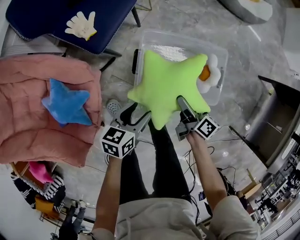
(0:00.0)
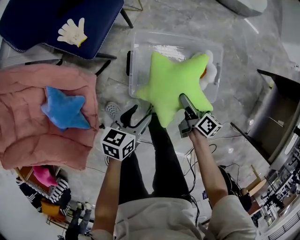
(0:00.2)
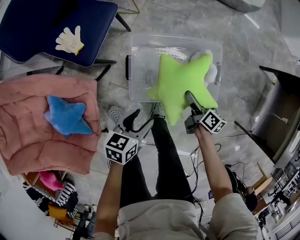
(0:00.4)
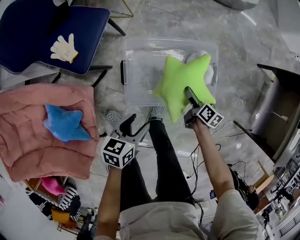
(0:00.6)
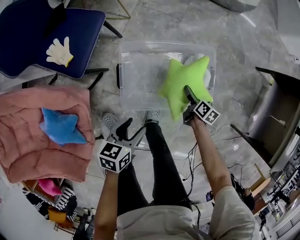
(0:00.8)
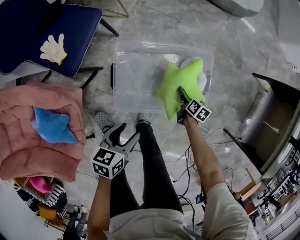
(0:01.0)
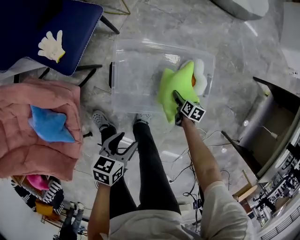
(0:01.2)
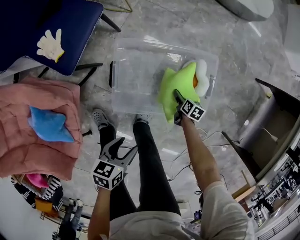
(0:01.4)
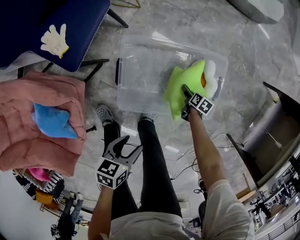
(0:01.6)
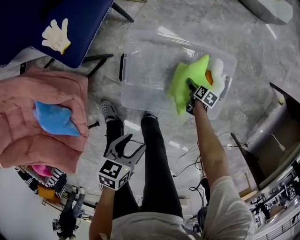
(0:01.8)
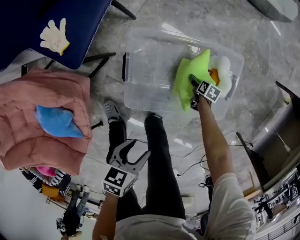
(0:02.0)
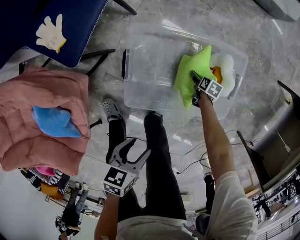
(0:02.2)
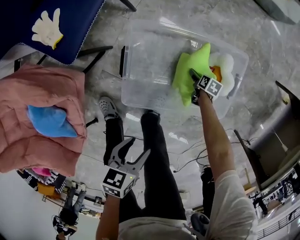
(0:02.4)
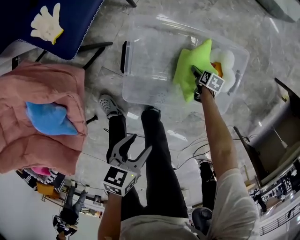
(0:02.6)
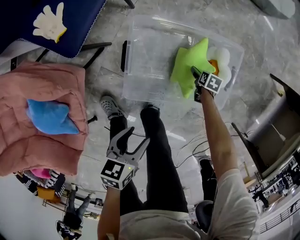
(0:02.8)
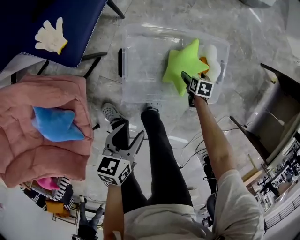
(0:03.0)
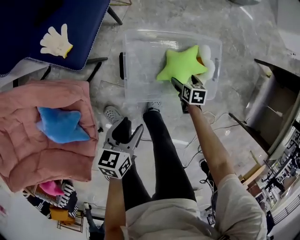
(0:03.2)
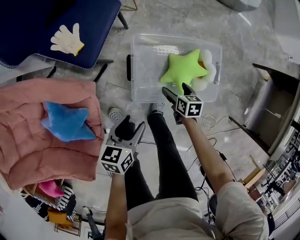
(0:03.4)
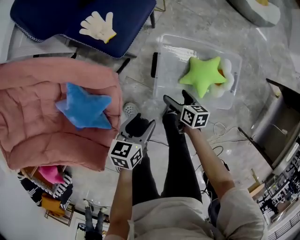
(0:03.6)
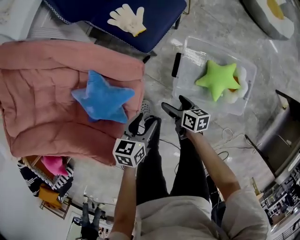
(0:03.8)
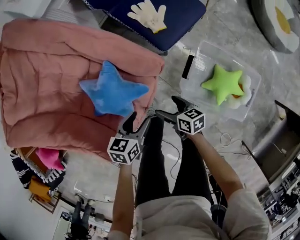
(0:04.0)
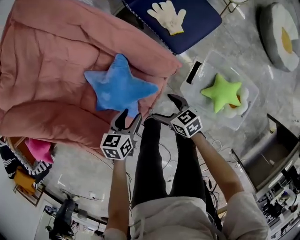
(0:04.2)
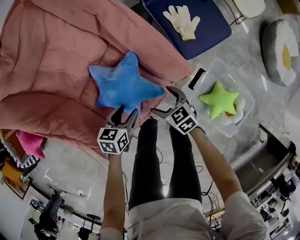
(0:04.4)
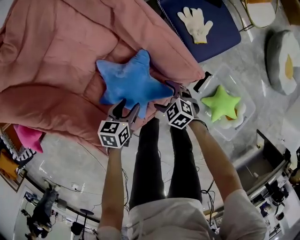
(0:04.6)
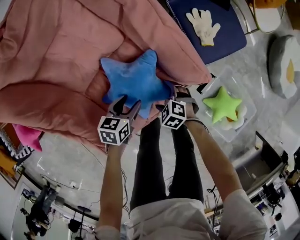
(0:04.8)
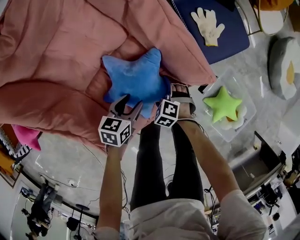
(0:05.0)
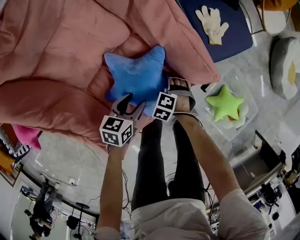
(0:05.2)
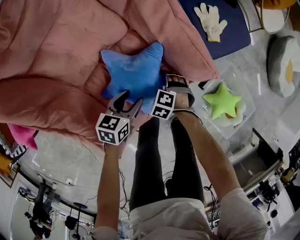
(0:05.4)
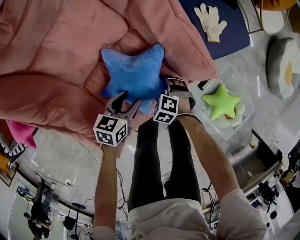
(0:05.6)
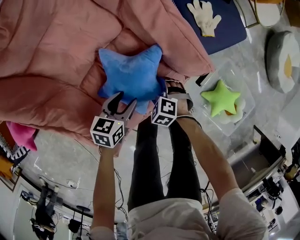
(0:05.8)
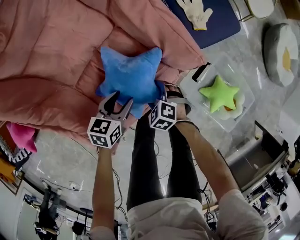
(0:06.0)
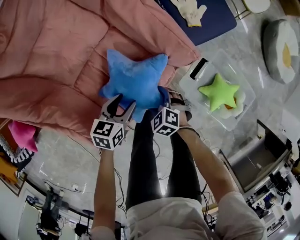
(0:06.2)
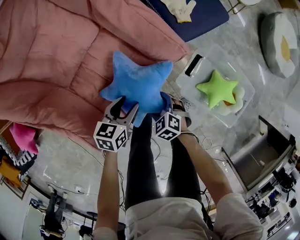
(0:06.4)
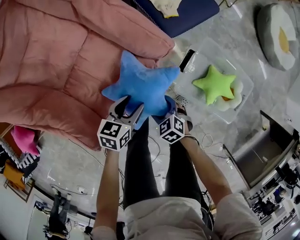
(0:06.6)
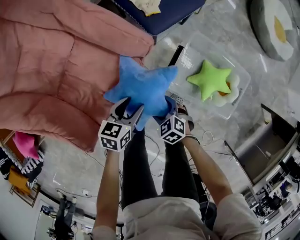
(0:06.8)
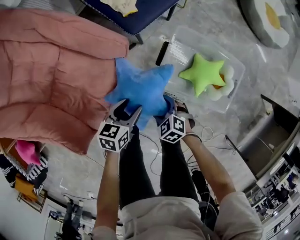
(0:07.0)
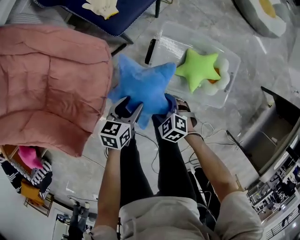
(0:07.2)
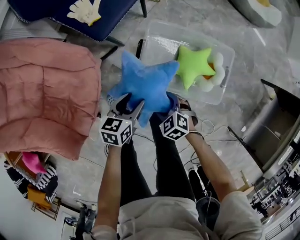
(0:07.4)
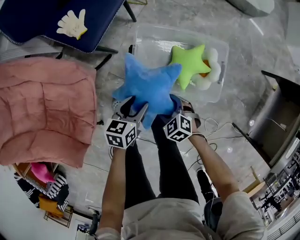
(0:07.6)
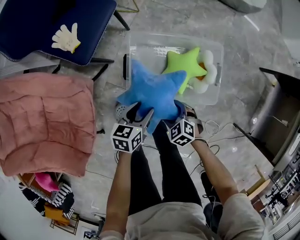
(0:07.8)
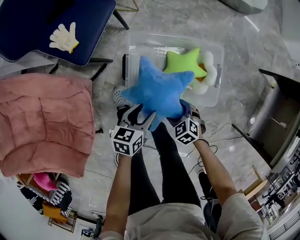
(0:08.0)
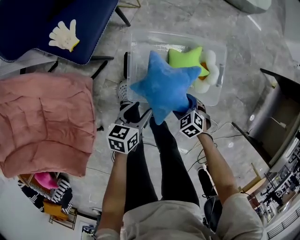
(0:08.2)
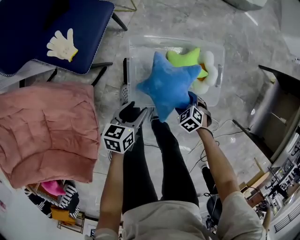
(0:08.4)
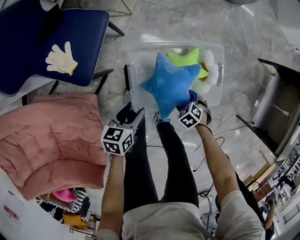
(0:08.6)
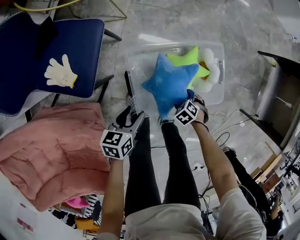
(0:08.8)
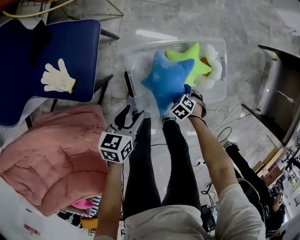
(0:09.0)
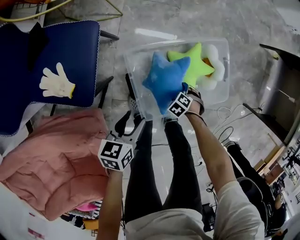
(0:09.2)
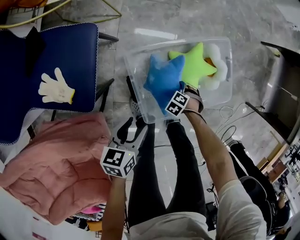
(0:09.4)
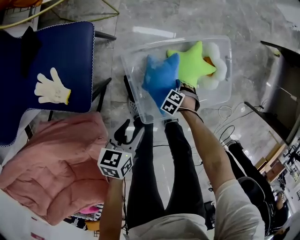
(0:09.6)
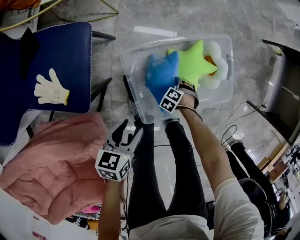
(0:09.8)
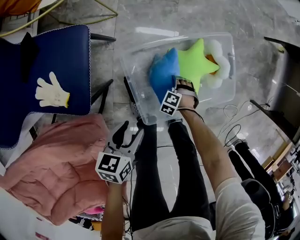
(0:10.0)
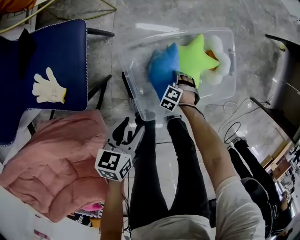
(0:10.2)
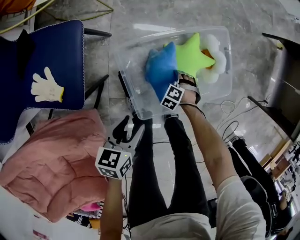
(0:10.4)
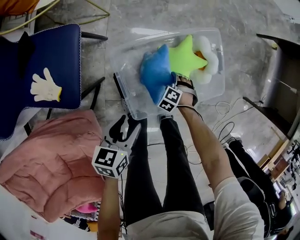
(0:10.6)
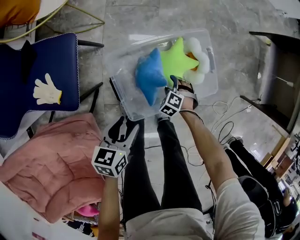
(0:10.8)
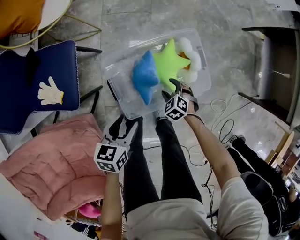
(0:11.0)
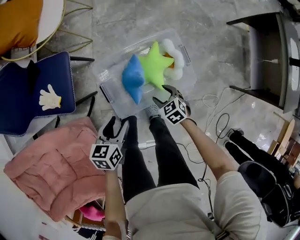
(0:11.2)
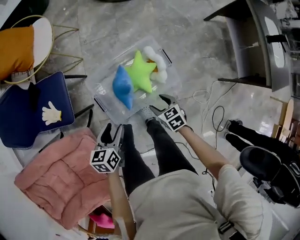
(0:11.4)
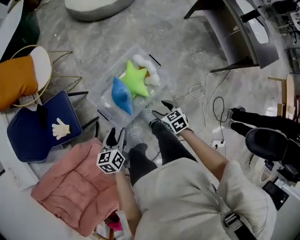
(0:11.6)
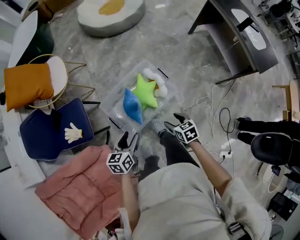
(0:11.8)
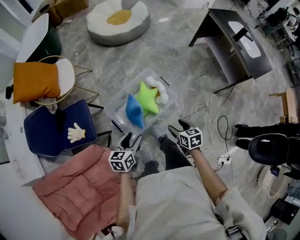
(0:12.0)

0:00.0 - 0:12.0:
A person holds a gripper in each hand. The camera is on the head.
0:00.0 - 0:01.6: The left gripper moves to the right, roughly 10 cm, while the right gripper goes approximately 35 cm downward, to the right and forward, and angles its fingers downward, by roughly 50 degrees.
0:01.6 - 0:03.0: The right gripper moves roughly 10 cm downward and comes back, and rotates roughly 20 degrees; the left gripper moves some 10 cm.
0:03.0 - 0:04.4: Both grippers are carried some 50 cm. The left gripper swivels some 30 degrees. Meanwhile the right gripper rolls counterclockwise, seen from behind, by roughly 70 degrees.
0:04.4 - 0:06.0: The right gripper shifts by about 10 cm, and rotates approximately 40 degrees.
0:06.0 - 0:07.6: The pair of grippers is taken roughly 50 cm. The right gripper rotates about 40 degrees. Meanwhile the left gripper swivels about 30 degrees.
0:07.6 - 0:09.0: The right gripper goes roughly 15 cm downward, and turns by some 40 degrees; the left gripper shifts by roughly 15 cm.
0:09.0 - 0:10.4: The right gripper travels downward by approximately 10 cm.
0:10.4 - 0:12.0: The left gripper heads upward, covering approximately 30 cm, and changes its angle by about 20 degrees. The right gripper travels upward by some 50 cm, and rolls clockwise, seen from behind, by roughly 80 degrees.

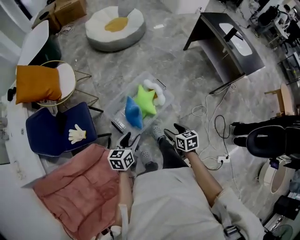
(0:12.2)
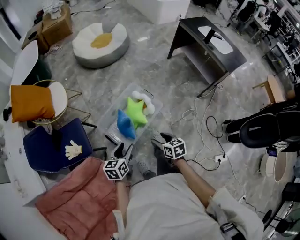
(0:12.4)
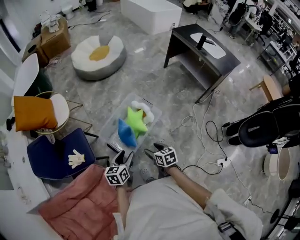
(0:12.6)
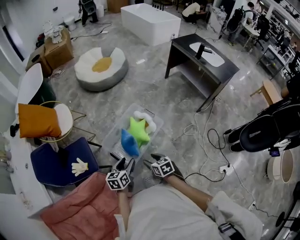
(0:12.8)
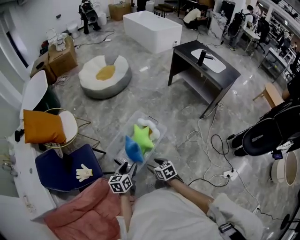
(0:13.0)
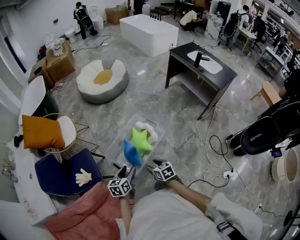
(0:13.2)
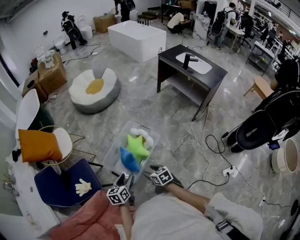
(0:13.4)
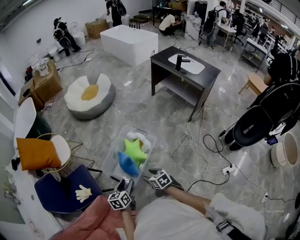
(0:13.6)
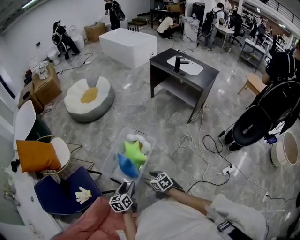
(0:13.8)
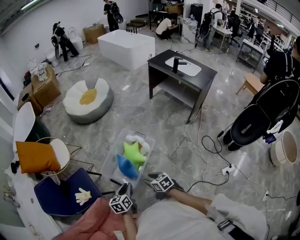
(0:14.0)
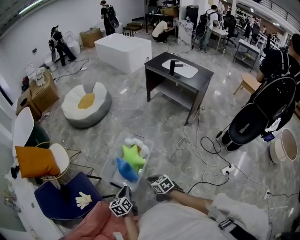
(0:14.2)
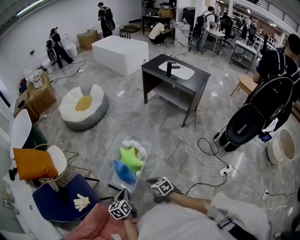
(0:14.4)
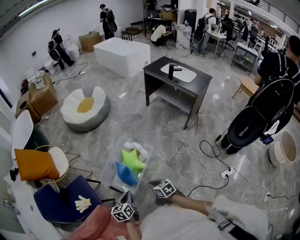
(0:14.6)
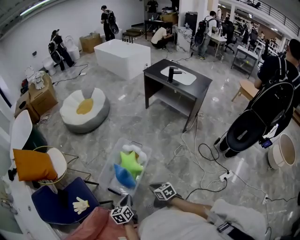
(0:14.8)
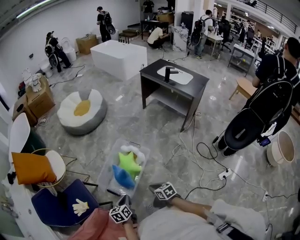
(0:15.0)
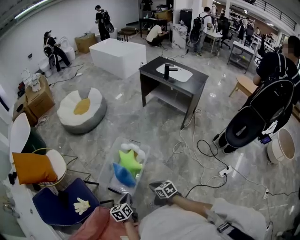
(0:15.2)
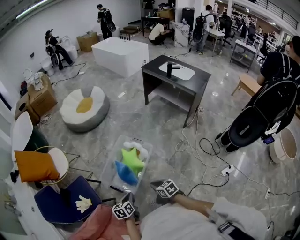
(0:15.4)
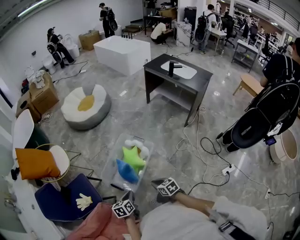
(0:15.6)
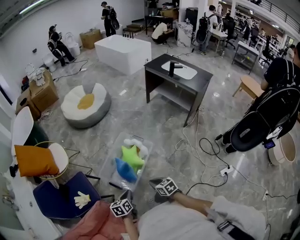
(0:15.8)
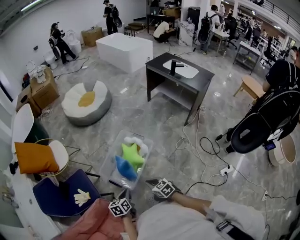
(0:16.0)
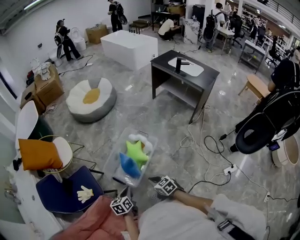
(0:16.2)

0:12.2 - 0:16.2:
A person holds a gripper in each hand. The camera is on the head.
0:12.2 - 0:13.6: The left gripper moves backward, roughly 5 cm. The right gripper shifts about 10 cm to the left and backward.
0:13.6 - 0:14.8: The right gripper moves some 5 cm, and closes its fingers, while the left gripper closes up.
0:14.8 - 0:16.2: The grippers make only small movements.

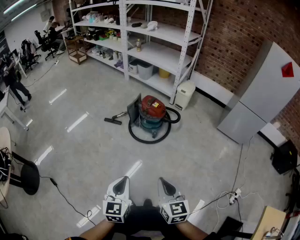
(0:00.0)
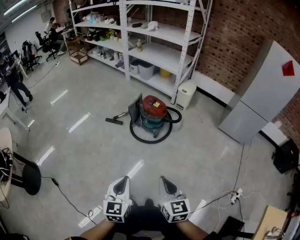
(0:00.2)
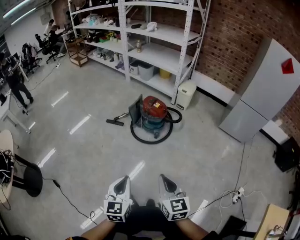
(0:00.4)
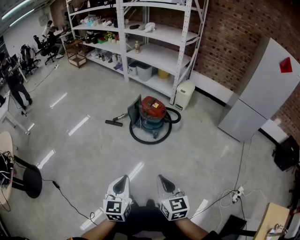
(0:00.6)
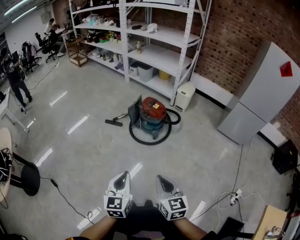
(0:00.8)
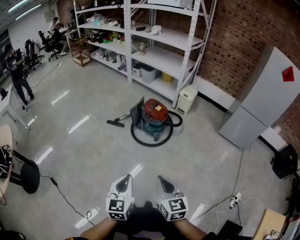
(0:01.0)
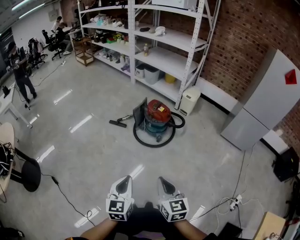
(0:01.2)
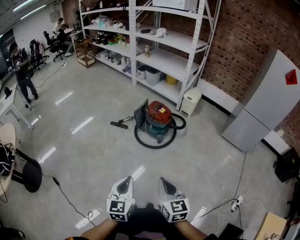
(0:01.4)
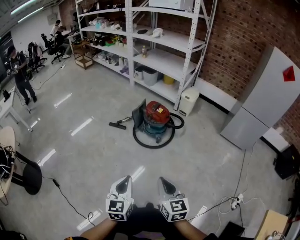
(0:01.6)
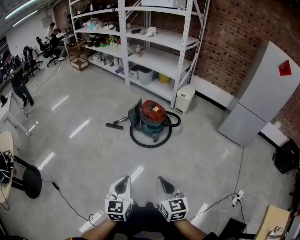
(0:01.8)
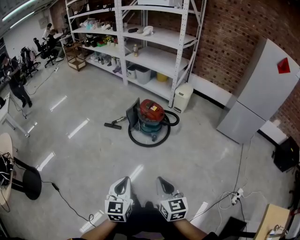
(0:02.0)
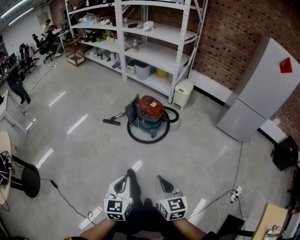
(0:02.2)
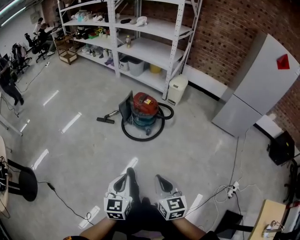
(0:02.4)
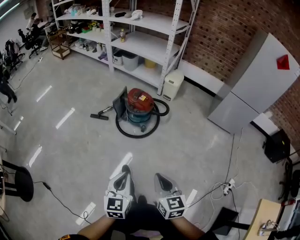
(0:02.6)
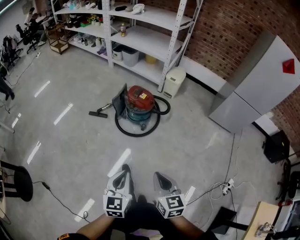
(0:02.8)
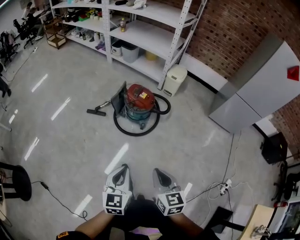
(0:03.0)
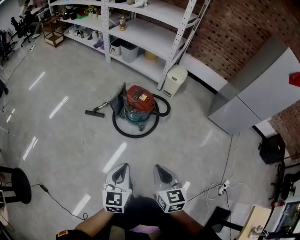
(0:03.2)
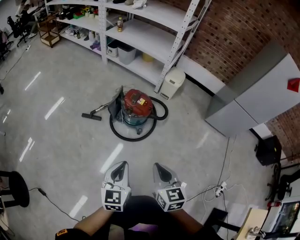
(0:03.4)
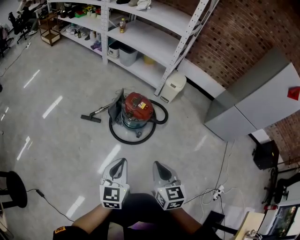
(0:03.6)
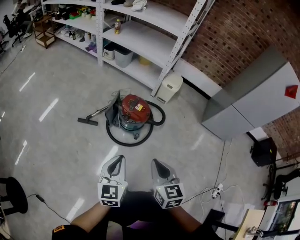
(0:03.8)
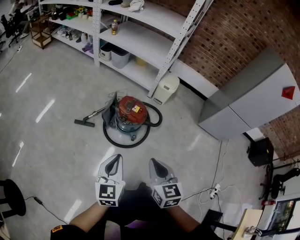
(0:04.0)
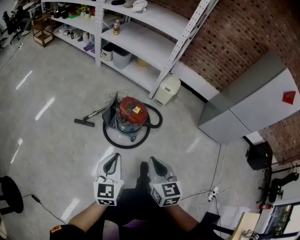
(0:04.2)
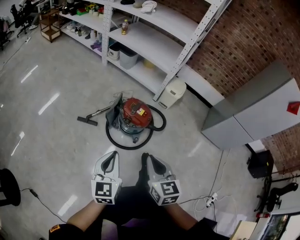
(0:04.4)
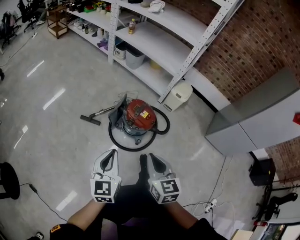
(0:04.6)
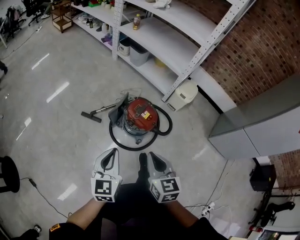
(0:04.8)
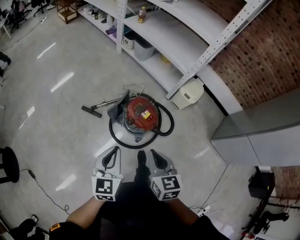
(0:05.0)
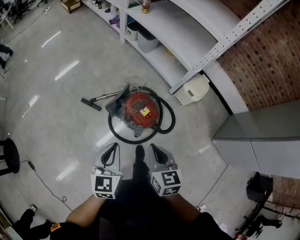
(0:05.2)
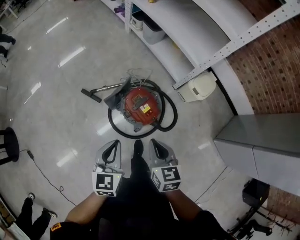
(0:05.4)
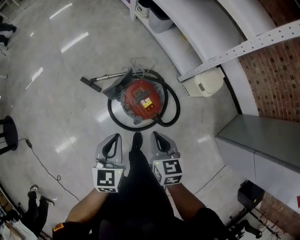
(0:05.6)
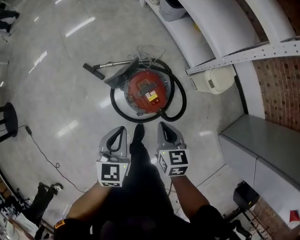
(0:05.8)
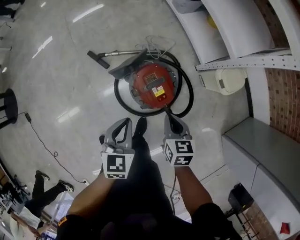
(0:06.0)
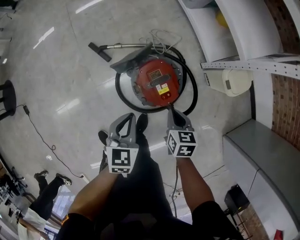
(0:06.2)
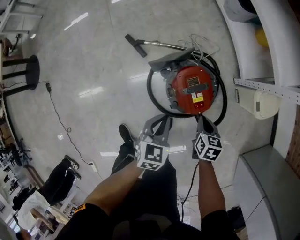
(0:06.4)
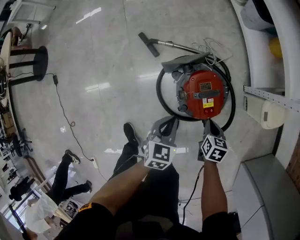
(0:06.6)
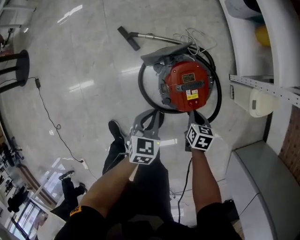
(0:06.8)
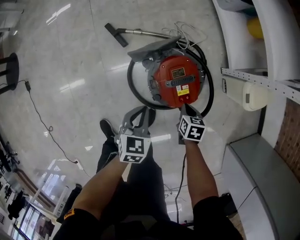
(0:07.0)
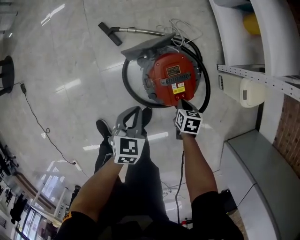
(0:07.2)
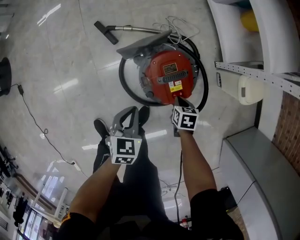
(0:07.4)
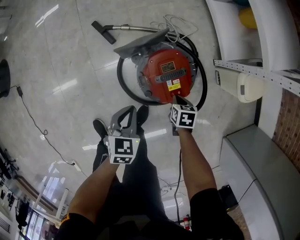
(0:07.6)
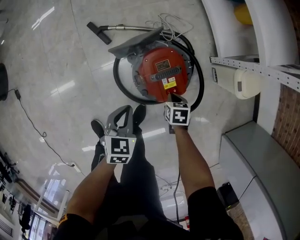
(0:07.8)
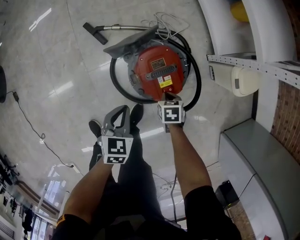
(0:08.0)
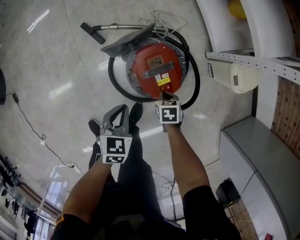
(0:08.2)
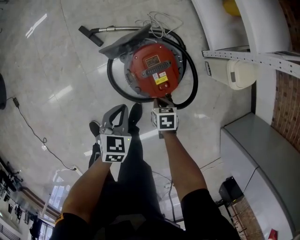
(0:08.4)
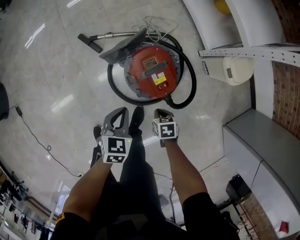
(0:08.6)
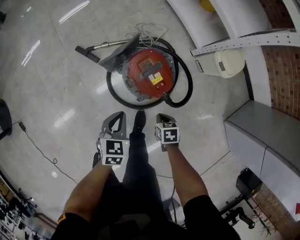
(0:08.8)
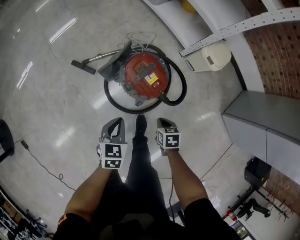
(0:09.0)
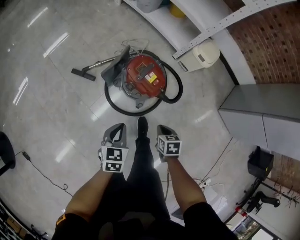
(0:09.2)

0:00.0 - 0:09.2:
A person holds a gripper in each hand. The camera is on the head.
0:00.0 - 0:01.6: The grippers move only a little.
0:01.6 - 0:03.0: Both grippers travel together forward, roughly 15 cm.
0:03.0 - 0:04.6: The two grippers go some 25 cm forward.
0:04.6 - 0:06.2: Both grippers travel together downward, forward and to the right, approximately 40 cm. The right gripper rotates about 40 degrees; the left gripper turns by roughly 30 degrees.
0:06.2 - 0:07.6: The left gripper travels downward by roughly 10 cm. The right gripper shifts about 20 cm downward.
0:07.6 - 0:09.2: The right gripper ends up some 25 cm from where it was, and rotates approximately 30 degrees. The left gripper ends up about 15 cm from where it was, and rotates approximately 30 degrees.
